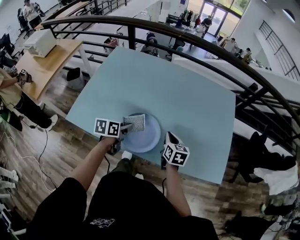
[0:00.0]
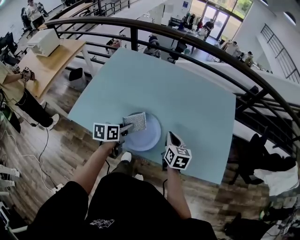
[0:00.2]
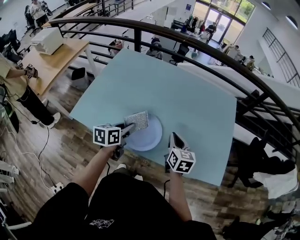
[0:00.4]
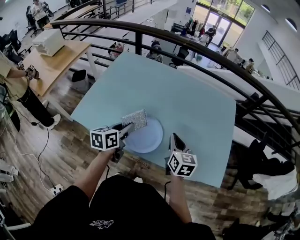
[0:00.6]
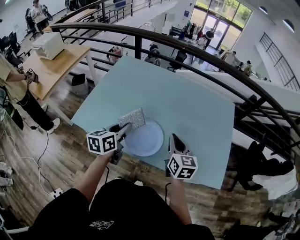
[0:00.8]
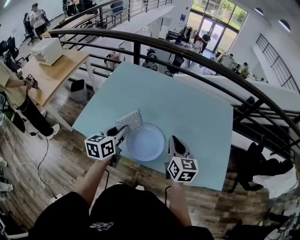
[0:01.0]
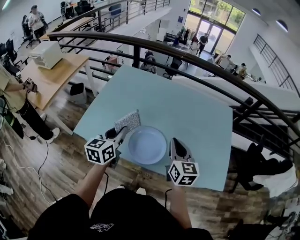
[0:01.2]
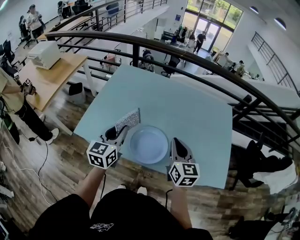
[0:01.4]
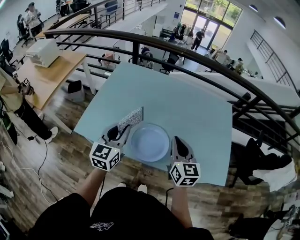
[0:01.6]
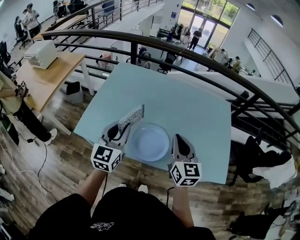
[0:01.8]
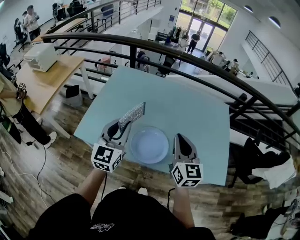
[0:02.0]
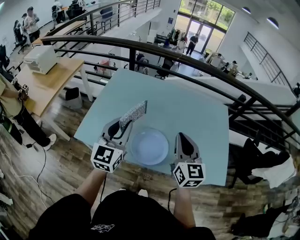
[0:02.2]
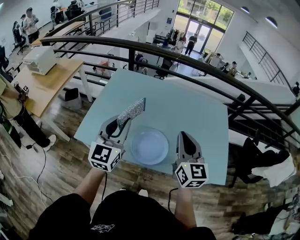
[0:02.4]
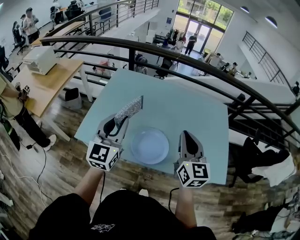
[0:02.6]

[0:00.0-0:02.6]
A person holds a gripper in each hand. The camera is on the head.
0:00.0 to 0:01.2: The left gripper moves upward and to the left, about 20 cm, and rotates roughly 40 degrees. Meanwhile the right gripper goes roughly 20 cm upward, and turns by some 20 degrees.
0:01.2 to 0:02.6: The two grippers go roughly 10 cm upward. The left gripper rotates approximately 30 degrees.

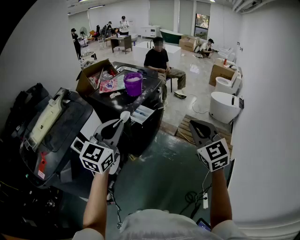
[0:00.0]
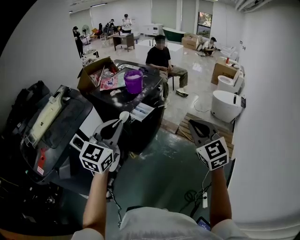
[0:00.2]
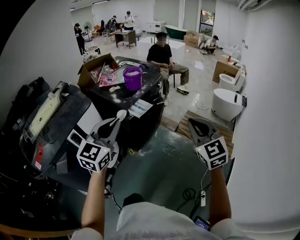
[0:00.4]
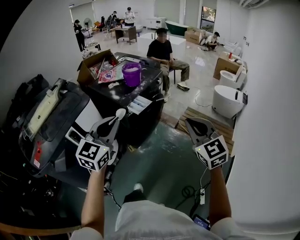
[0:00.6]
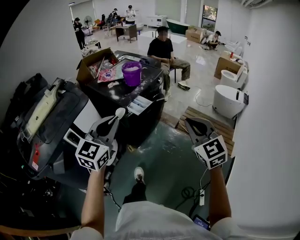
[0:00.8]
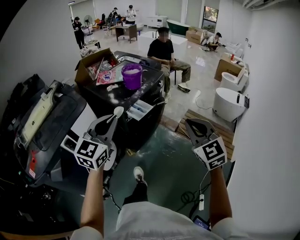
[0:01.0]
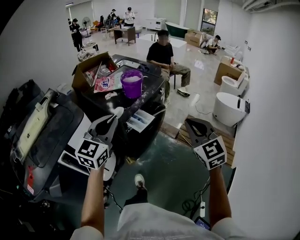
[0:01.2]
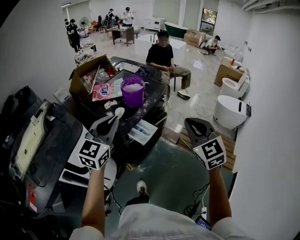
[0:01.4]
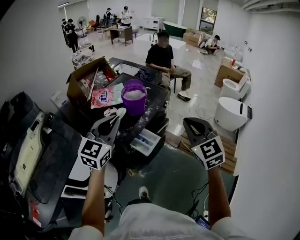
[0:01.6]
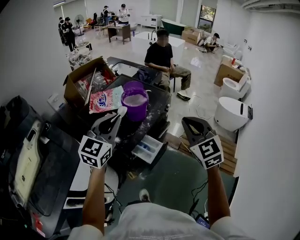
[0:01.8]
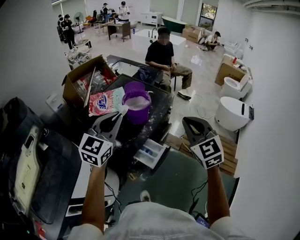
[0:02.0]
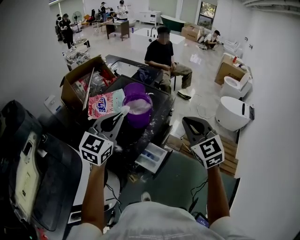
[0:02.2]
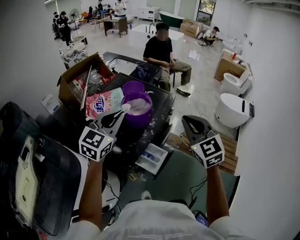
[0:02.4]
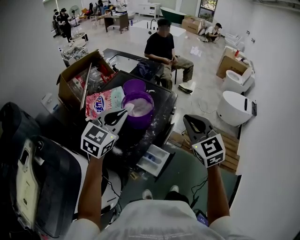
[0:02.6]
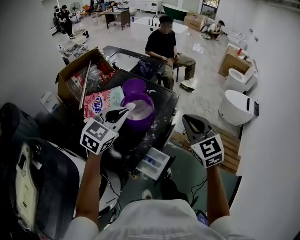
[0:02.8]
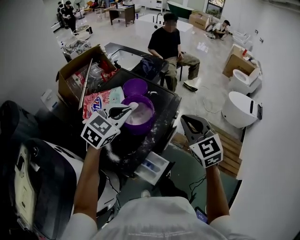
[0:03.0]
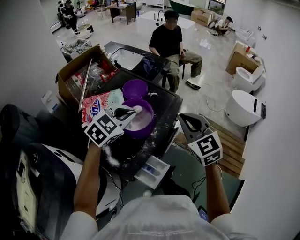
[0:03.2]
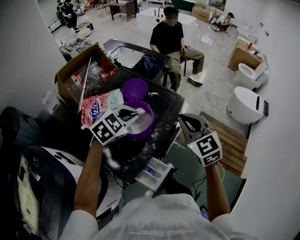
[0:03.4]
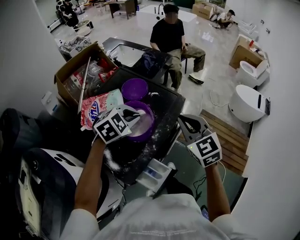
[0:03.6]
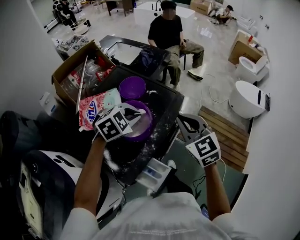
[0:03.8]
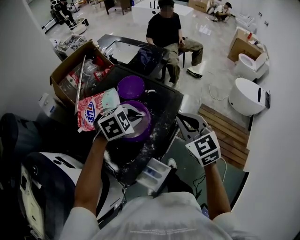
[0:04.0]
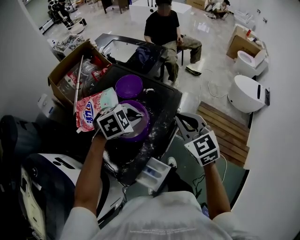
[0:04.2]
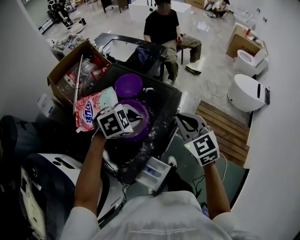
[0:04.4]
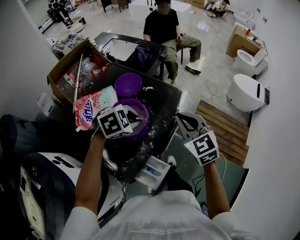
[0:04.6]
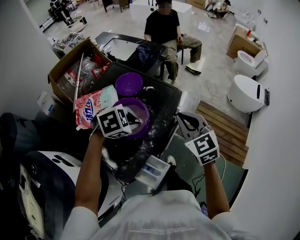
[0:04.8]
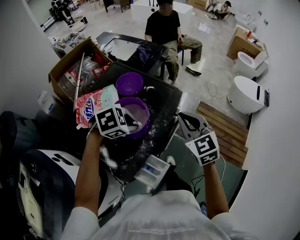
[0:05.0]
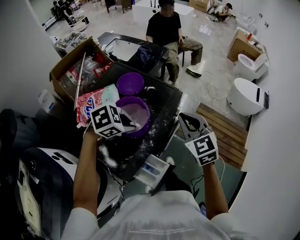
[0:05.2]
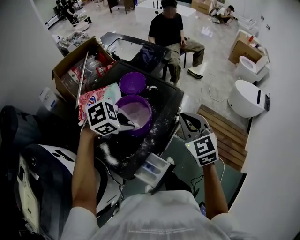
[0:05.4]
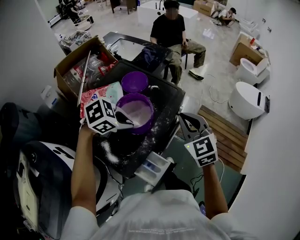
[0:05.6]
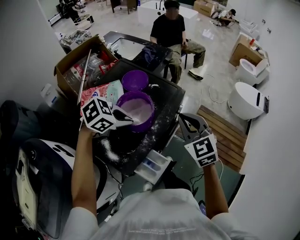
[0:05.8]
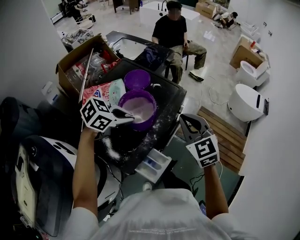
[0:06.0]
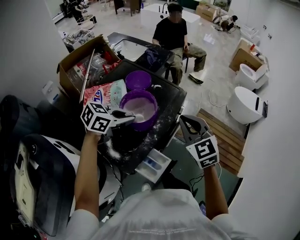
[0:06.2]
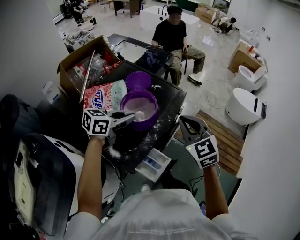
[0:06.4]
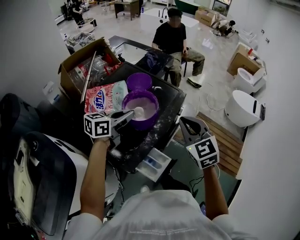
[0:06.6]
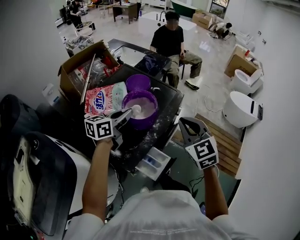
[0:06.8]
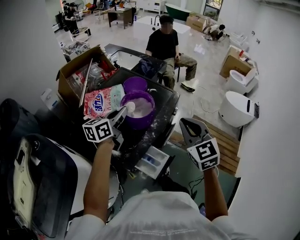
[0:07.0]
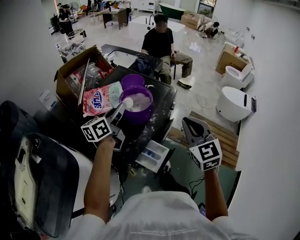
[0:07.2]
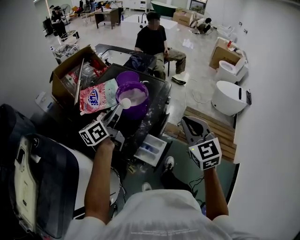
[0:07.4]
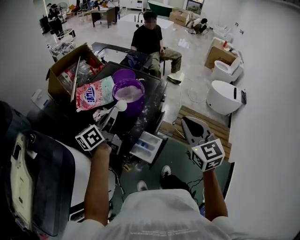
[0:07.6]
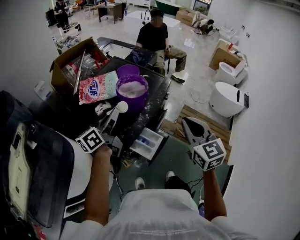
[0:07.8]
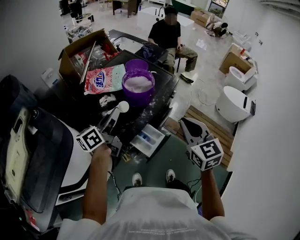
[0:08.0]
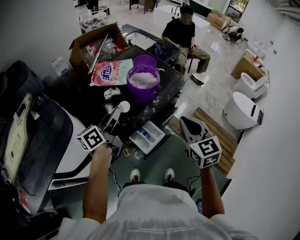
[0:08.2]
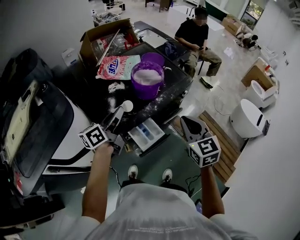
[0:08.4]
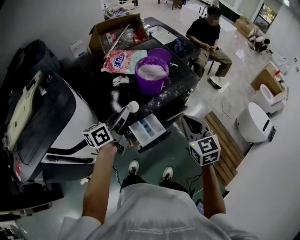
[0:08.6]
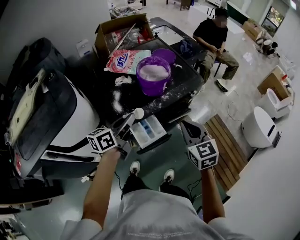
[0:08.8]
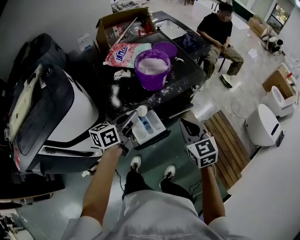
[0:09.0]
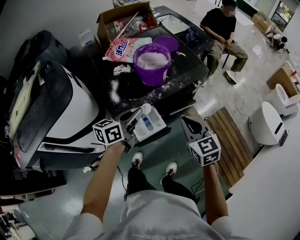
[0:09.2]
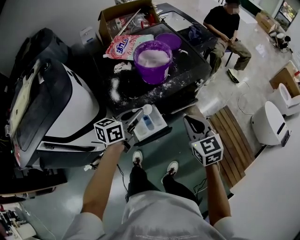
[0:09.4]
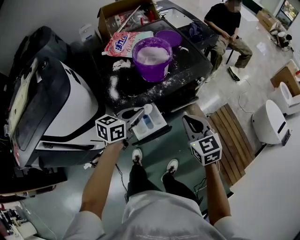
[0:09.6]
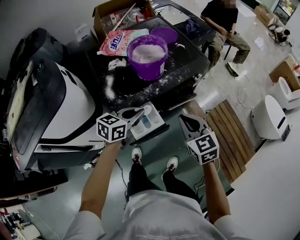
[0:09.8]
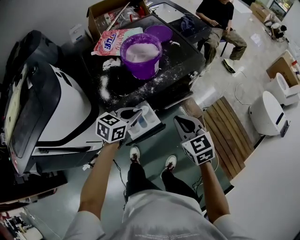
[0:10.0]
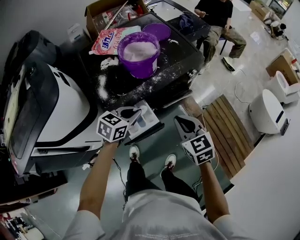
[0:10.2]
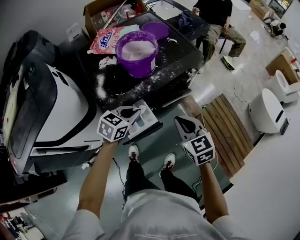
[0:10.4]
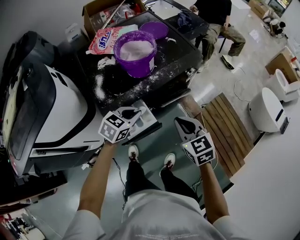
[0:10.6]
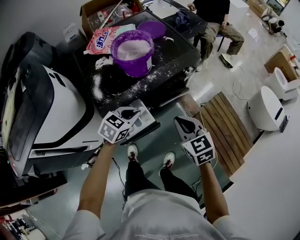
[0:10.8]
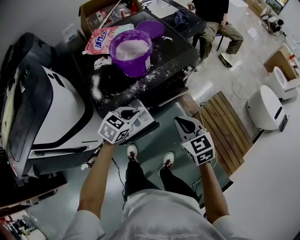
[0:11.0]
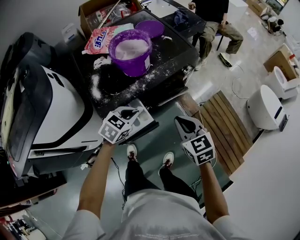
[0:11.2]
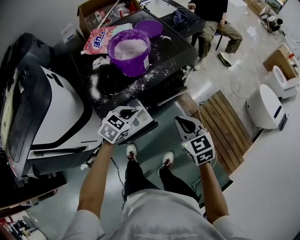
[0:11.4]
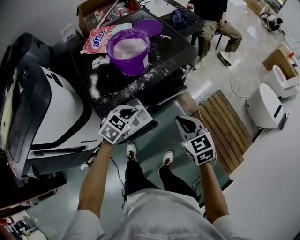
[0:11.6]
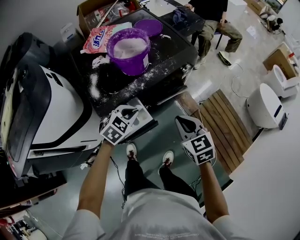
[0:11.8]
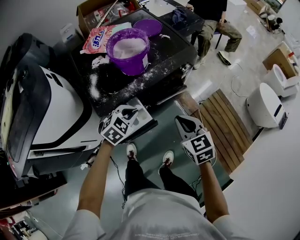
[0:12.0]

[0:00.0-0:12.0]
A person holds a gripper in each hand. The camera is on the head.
0:00.0 to 0:01.6: Both grippers move forward, some 35 cm.
0:01.6 to 0:03.0: Both grippers move forward, some 25 cm. The left gripper changes its angle by about 30 degrees.
0:03.0 to 0:04.4: The right gripper is displaced forward and downward by roughly 10 cm. Meanwhile the left gripper heads downward, forward and to the right, covering some 15 cm, and angles its fingers downward, by about 30 degrees.
0:04.4 to 0:06.0: The right gripper shifts some 5 cm backward; the left gripper travels backward by roughly 10 cm, and turns by roughly 30 degrees.
0:06.0 to 0:07.6: The left gripper is displaced backward and upward by about 10 cm, and tips its fingers upward by some 50 degrees; the right gripper travels backward by about 15 cm.
0:07.6 to 0:09.0: The right gripper moves downward, some 15 cm, and swivels roughly 40 degrees. The left gripper moves approximately 15 cm, and turns by approximately 20 degrees.
0:09.0 to 0:10.4: The right gripper shifts roughly 10 cm downward. Meanwhile the left gripper goes roughly 15 cm downward and to the right, and swivels about 40 degrees.
0:10.4 to 0:12.0: The left gripper changes its angle by some 30 degrees.

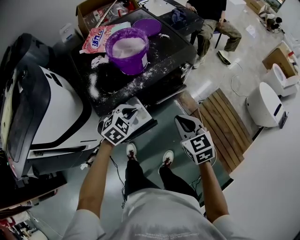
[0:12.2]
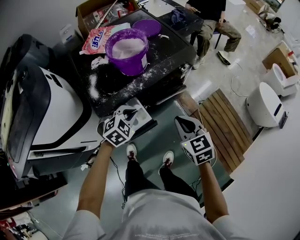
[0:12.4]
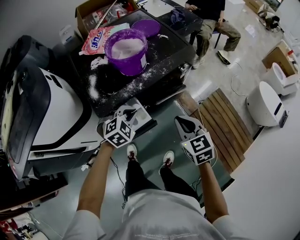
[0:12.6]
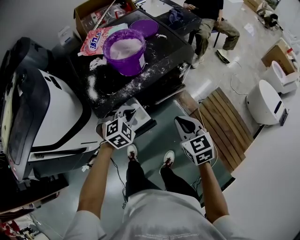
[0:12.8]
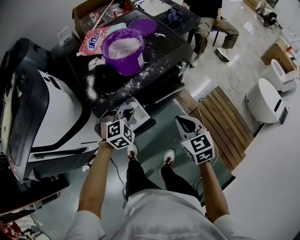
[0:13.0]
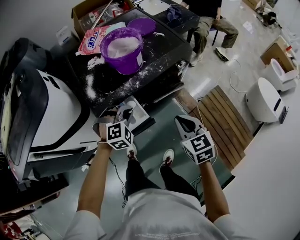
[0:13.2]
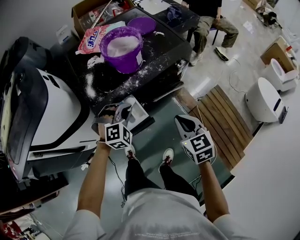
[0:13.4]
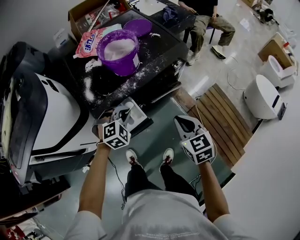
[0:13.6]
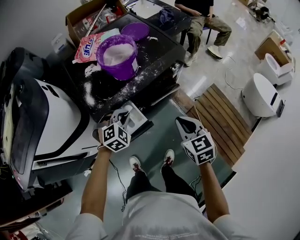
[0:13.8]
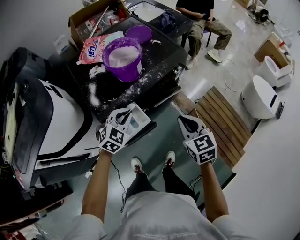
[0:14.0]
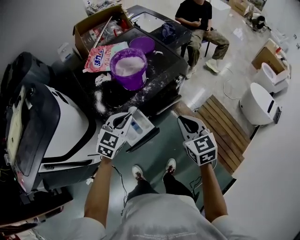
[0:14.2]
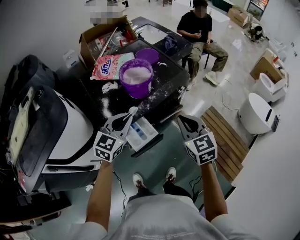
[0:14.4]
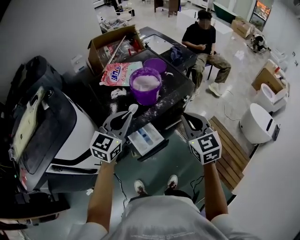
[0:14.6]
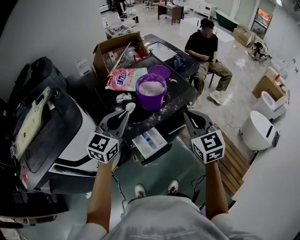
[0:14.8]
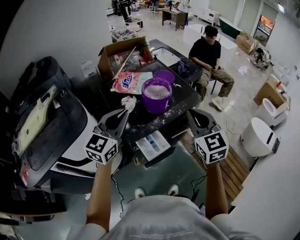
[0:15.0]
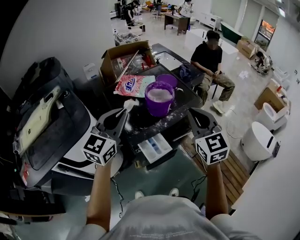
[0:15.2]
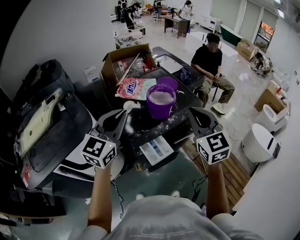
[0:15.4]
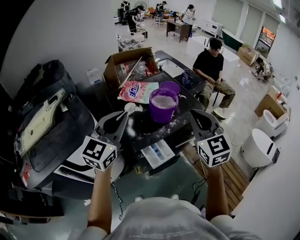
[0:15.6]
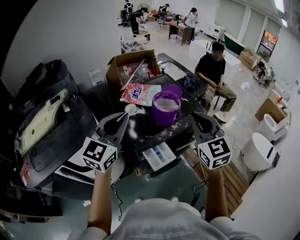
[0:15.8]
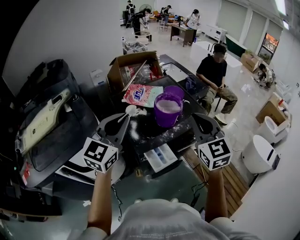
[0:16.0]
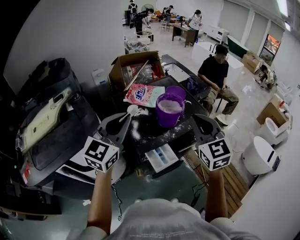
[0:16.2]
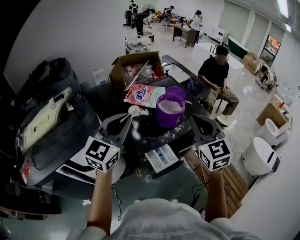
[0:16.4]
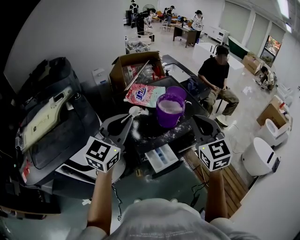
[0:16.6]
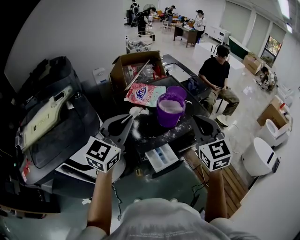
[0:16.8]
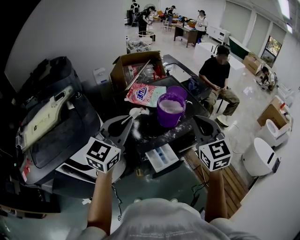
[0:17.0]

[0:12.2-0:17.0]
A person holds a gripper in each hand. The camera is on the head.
0:13.8 to 0:15.4: The left gripper travels upward by roughly 35 cm, and angles its fingers upward, by about 50 degrees. Meanwhile the right gripper heads upward and to the left, covering roughly 30 cm, and swivels about 30 degrees.
0:15.4 to 0:17.0: The grippers move only a little.

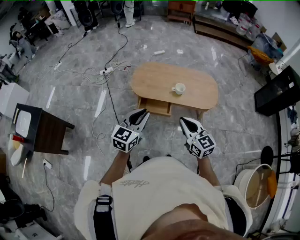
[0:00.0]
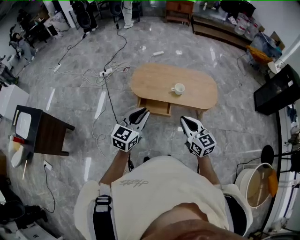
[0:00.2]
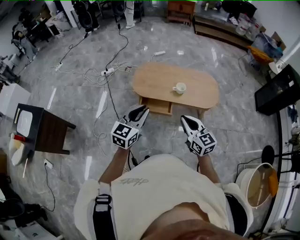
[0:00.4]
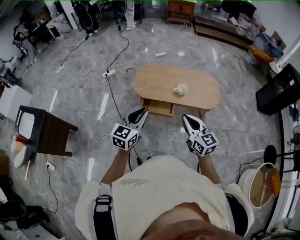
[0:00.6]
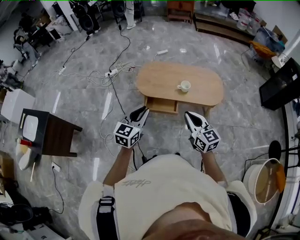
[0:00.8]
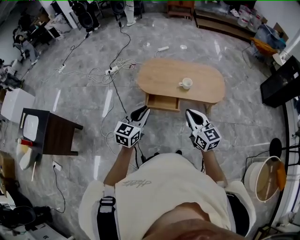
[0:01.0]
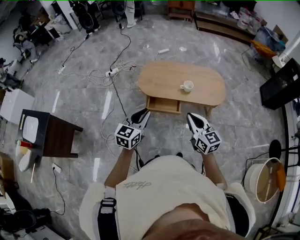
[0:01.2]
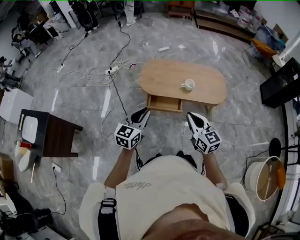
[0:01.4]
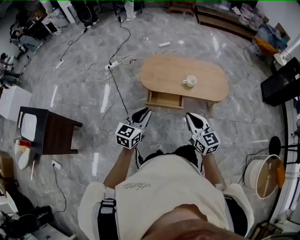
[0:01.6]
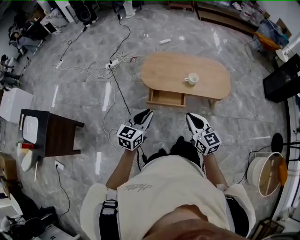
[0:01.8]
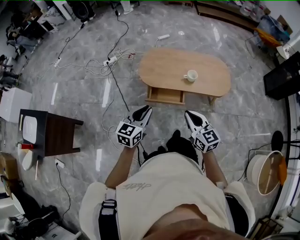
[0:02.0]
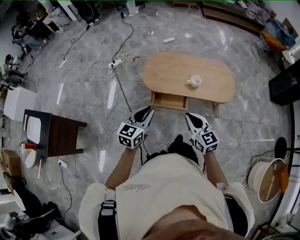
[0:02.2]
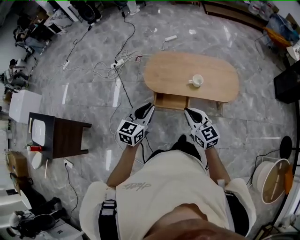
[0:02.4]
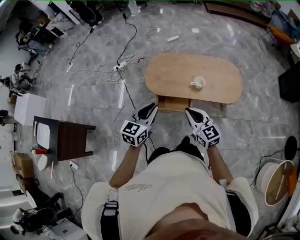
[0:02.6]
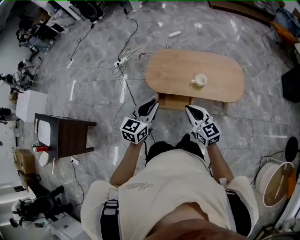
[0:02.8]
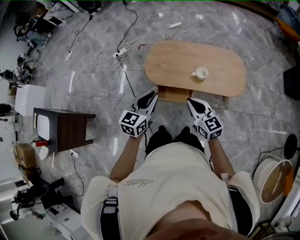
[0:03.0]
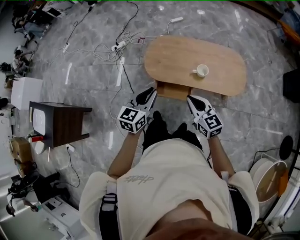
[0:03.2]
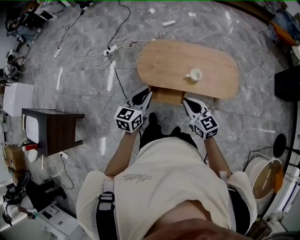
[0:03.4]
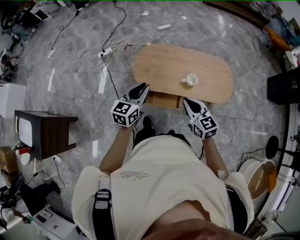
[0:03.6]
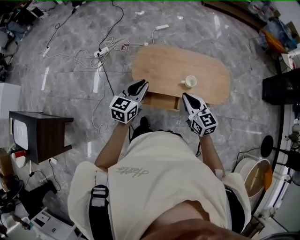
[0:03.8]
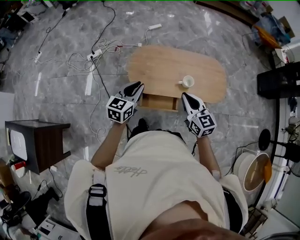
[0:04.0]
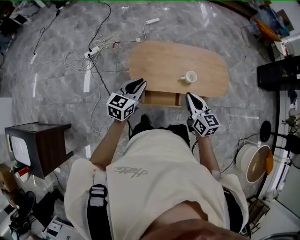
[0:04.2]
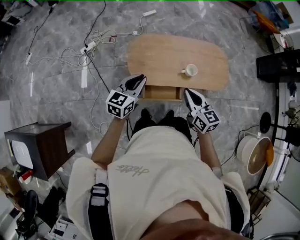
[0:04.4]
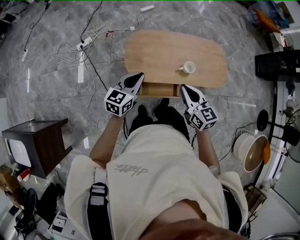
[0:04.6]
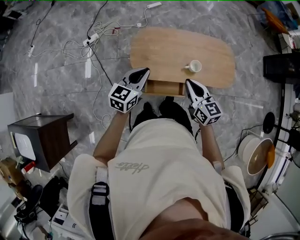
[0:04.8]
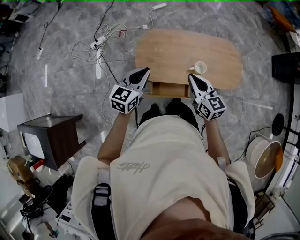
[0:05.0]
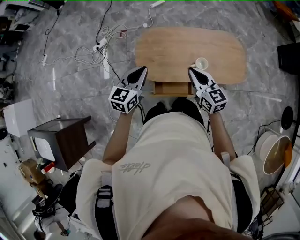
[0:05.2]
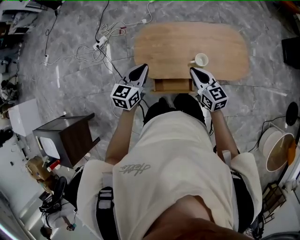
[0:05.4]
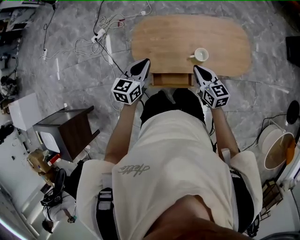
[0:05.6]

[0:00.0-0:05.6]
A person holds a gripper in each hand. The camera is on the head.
0:00.0 to 0:01.4: The left gripper travels to the left by roughly 10 cm. The right gripper heads to the left, covering some 5 cm.
0:01.4 to 0:02.8: The left gripper travels forward and to the right by some 20 cm. Meanwhile the right gripper goes some 20 cm forward.
0:02.8 to 0:04.2: The two grippers go about 25 cm forward and to the left. The right gripper changes its angle by some 20 degrees.
0:04.2 to 0:05.6: The two grippers go about 25 cm forward, to the right and downward.
